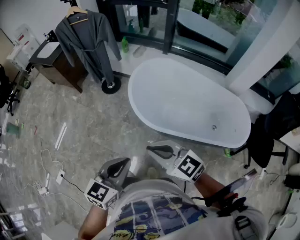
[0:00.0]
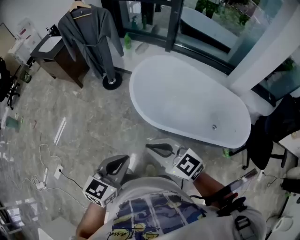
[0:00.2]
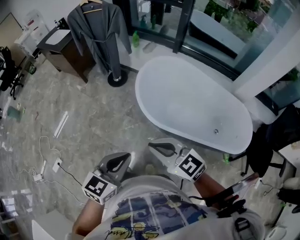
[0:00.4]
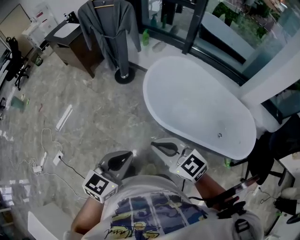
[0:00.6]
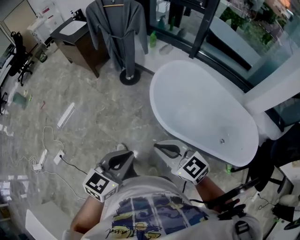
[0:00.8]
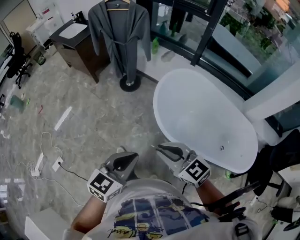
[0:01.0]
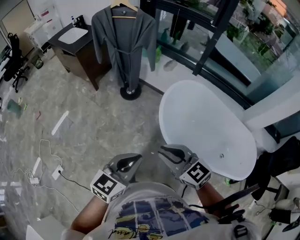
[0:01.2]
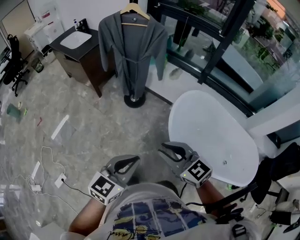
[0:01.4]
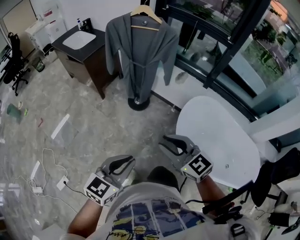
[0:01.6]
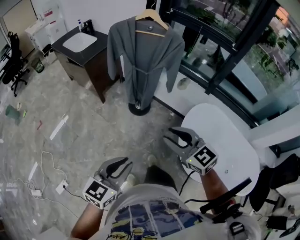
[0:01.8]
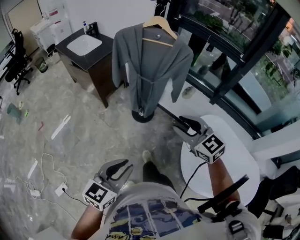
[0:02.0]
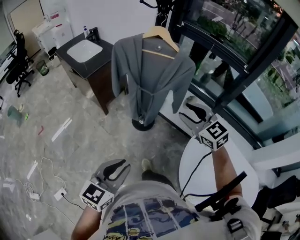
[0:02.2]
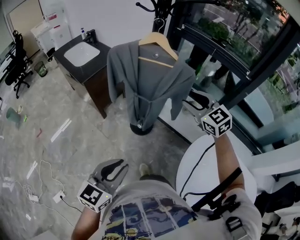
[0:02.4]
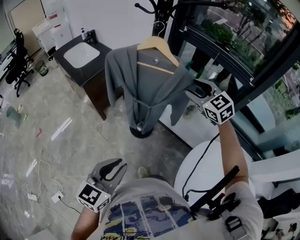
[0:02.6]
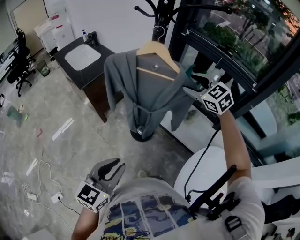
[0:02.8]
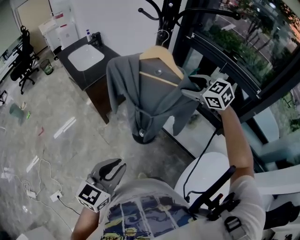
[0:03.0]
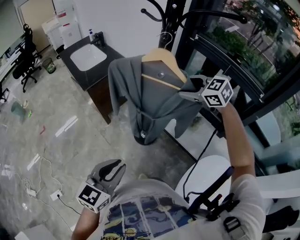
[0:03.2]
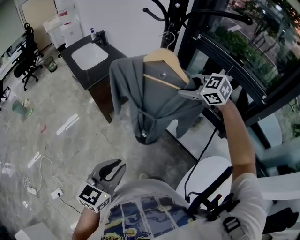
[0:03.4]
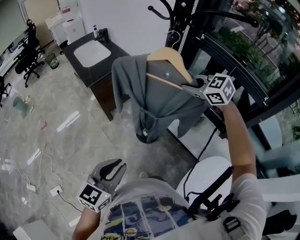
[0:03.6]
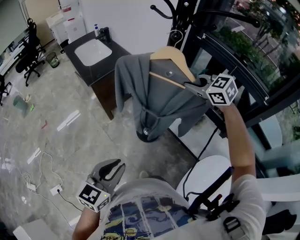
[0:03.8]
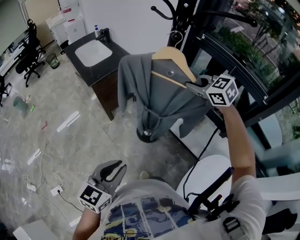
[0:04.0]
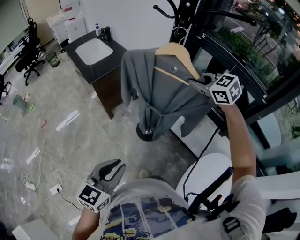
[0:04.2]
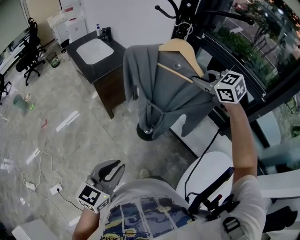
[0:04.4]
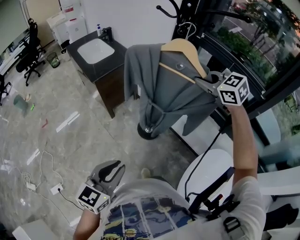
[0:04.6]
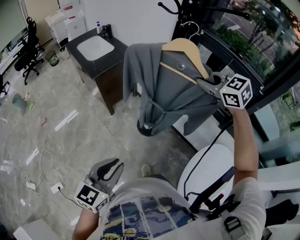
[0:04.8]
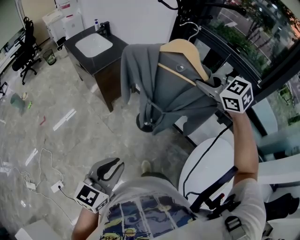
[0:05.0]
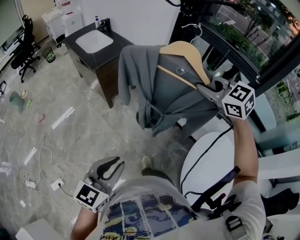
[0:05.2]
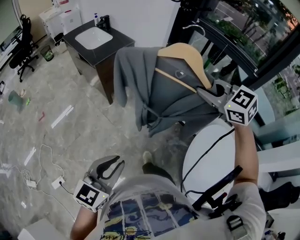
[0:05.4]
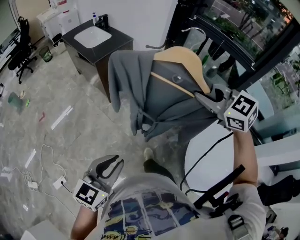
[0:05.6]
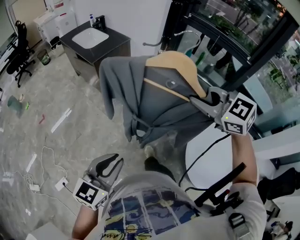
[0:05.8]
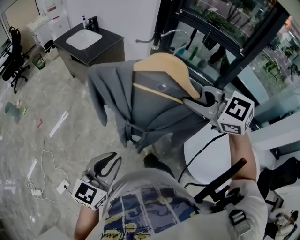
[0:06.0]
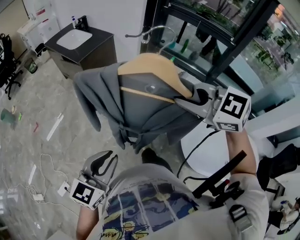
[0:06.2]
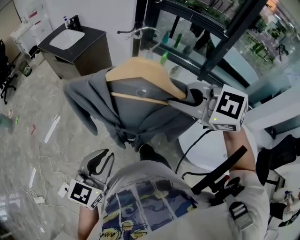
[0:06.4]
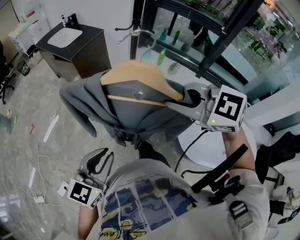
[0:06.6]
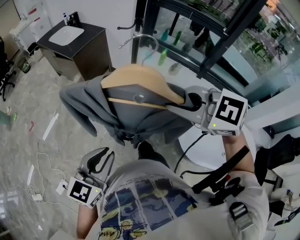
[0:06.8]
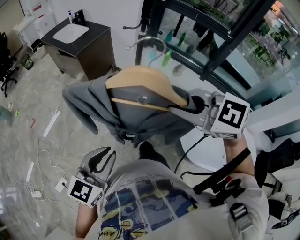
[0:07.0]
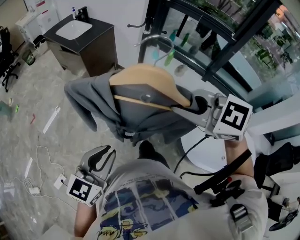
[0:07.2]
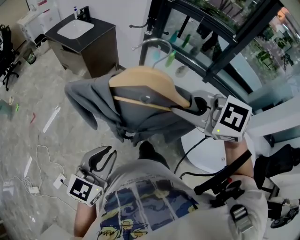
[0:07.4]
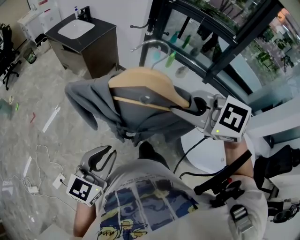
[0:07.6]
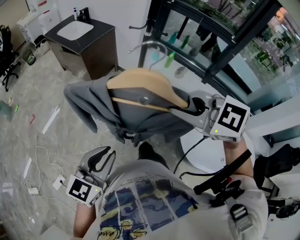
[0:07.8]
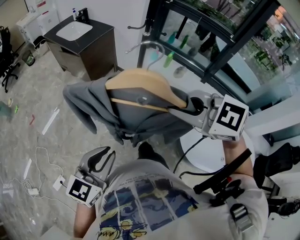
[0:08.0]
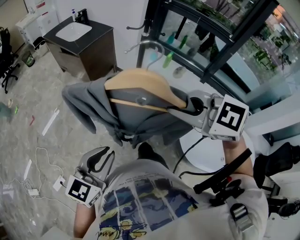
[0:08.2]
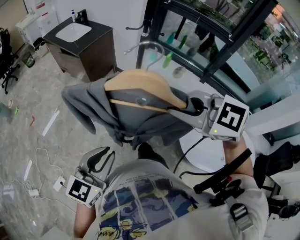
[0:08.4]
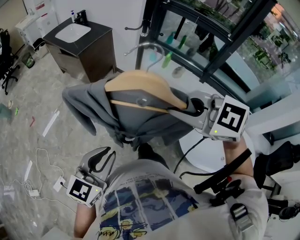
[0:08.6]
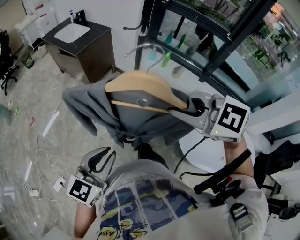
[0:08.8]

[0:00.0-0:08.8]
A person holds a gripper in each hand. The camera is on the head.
0:00.0 to 0:01.4: The two grippers go some 30 cm forward and to the left.
0:01.4 to 0:03.0: The right gripper shifts some 70 cm forward, turns by about 20 degrees, and opens; the left gripper heads forward, covering about 40 cm.
0:03.0 to 0:04.4: The left gripper changes place by roughly 5 cm; the right gripper ends up approximately 5 cm from where it was, and closes its fingers.
0:04.4 to 0:05.8: The left gripper travels backward and to the left by about 20 cm, while the right gripper travels backward by some 35 cm.
0:05.8 to 0:07.4: The right gripper moves backward and to the left, some 15 cm, while the left gripper goes approximately 5 cm backward.
0:07.4 to 0:08.8: The grippers make only small movements.

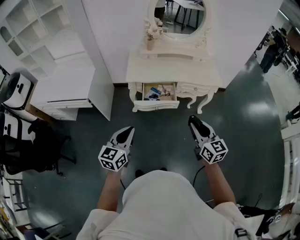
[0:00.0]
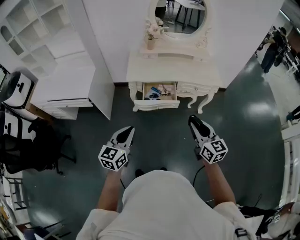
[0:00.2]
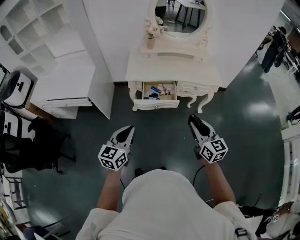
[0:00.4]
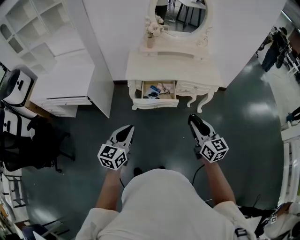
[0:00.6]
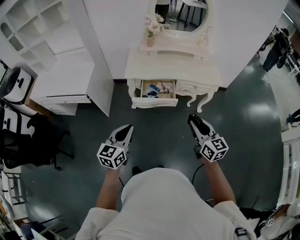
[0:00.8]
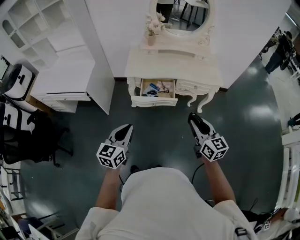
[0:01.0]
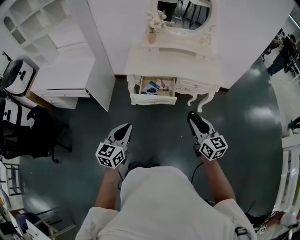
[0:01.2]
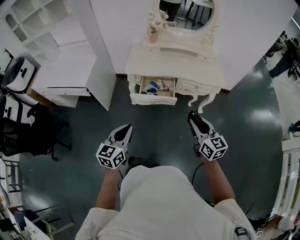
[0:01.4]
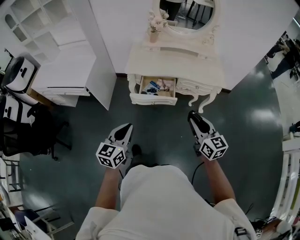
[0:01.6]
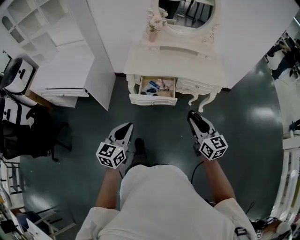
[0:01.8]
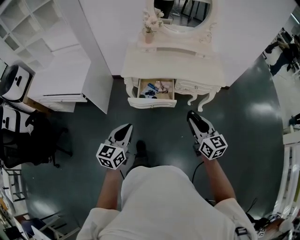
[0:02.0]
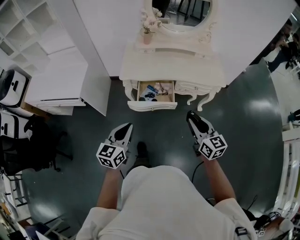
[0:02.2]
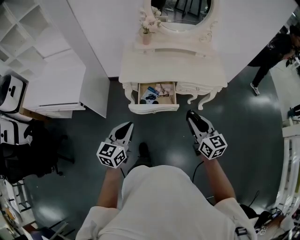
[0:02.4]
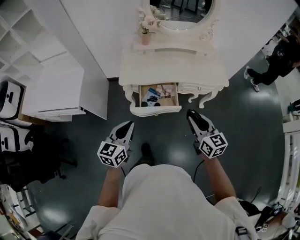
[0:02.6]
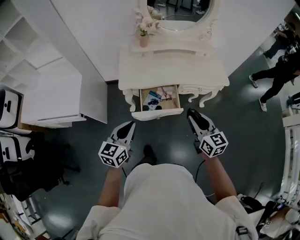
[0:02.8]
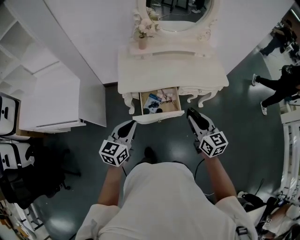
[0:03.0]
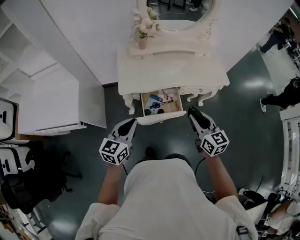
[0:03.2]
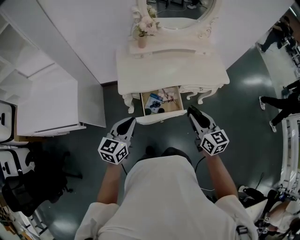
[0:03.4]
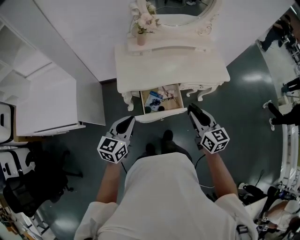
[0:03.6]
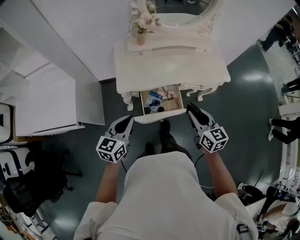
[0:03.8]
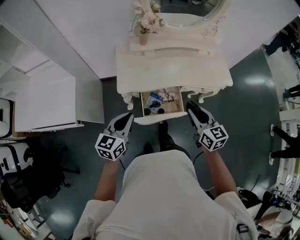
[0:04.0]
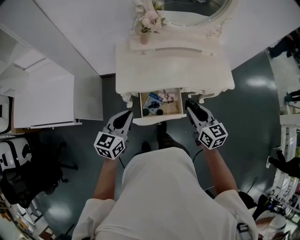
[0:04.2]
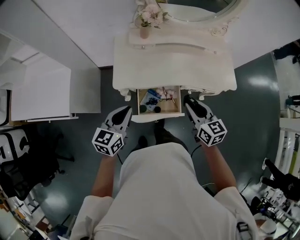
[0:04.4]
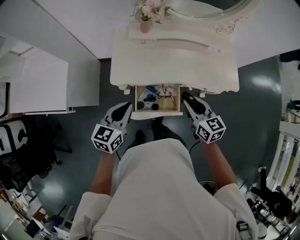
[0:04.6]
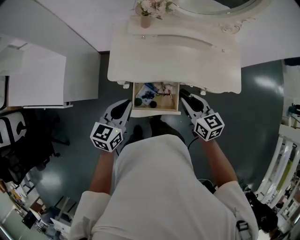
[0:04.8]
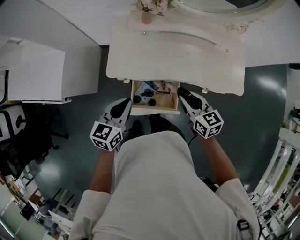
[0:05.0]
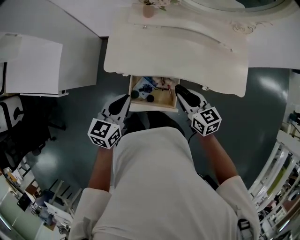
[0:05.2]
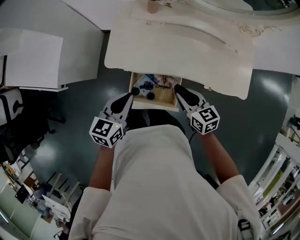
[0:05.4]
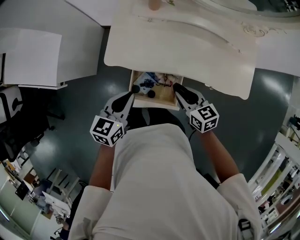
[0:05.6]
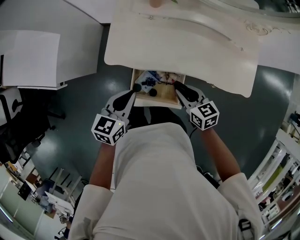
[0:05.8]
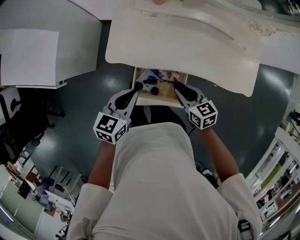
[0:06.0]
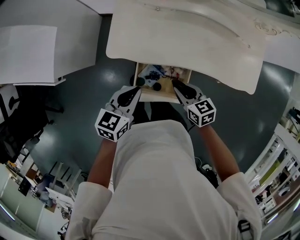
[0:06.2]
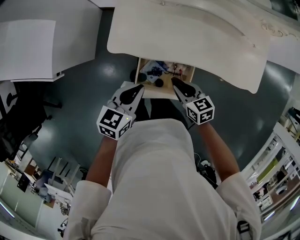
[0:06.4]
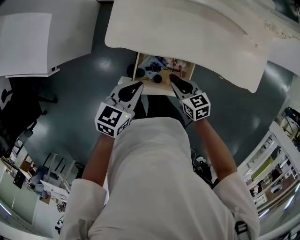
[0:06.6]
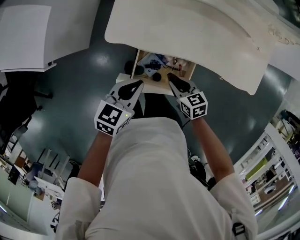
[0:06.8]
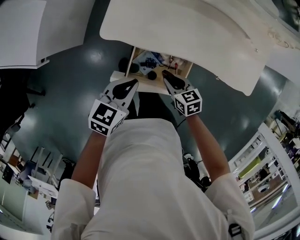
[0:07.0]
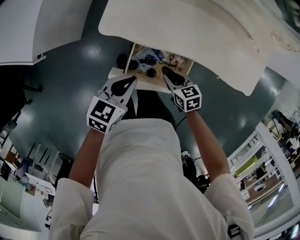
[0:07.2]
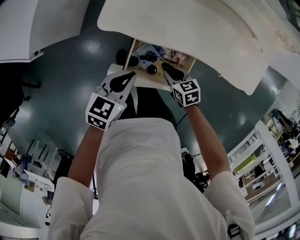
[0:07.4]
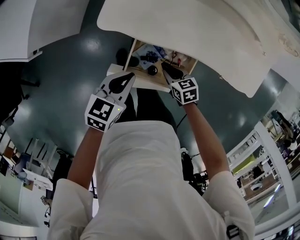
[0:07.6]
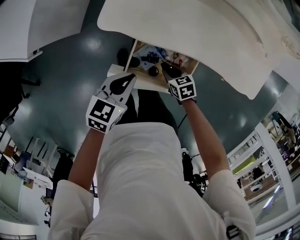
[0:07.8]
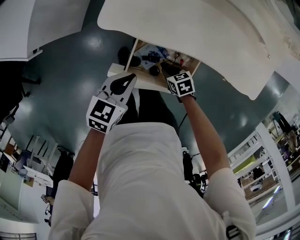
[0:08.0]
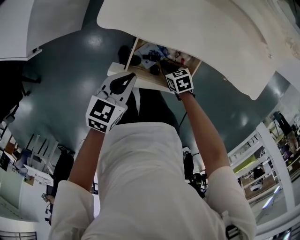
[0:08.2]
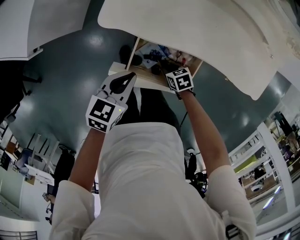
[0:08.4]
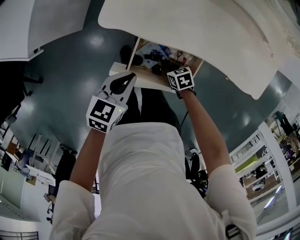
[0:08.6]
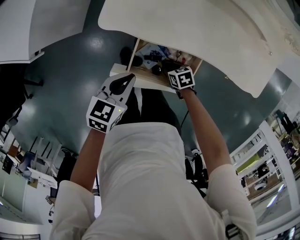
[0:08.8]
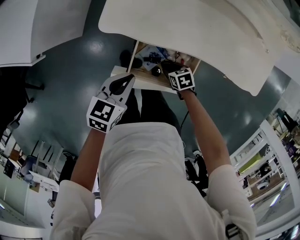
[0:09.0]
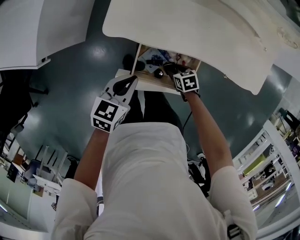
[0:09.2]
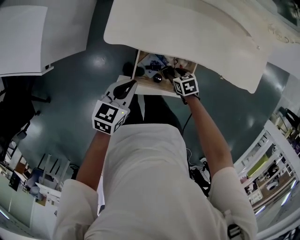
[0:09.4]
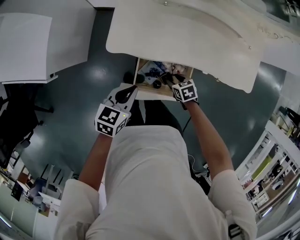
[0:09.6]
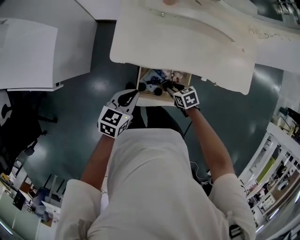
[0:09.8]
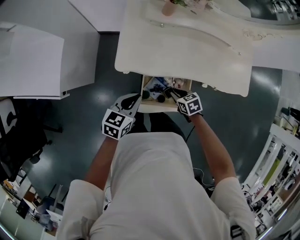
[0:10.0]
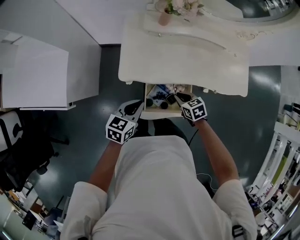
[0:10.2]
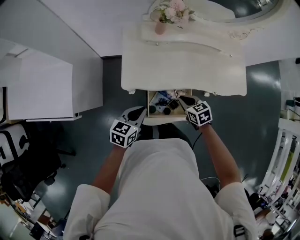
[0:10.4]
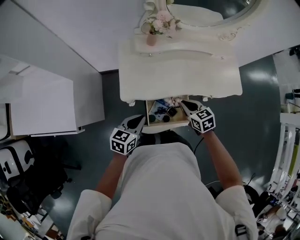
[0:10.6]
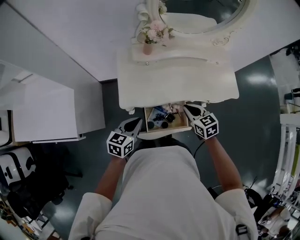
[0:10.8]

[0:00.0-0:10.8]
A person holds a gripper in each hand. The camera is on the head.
0:00.0 to 0:01.6: Both grippers move to the right, some 5 cm.
0:01.6 to 0:03.0: The right gripper heads forward and to the left, covering about 20 cm. The left gripper goes about 25 cm forward.
0:03.0 to 0:04.6: The left gripper travels forward by approximately 15 cm. Meanwhile the right gripper heads forward and downward, covering roughly 20 cm.
0:04.6 to 0:06.2: The right gripper heads downward, covering approximately 15 cm, and changes its angle by roughly 30 degrees, while the left gripper goes roughly 10 cm downward.
0:06.2 to 0:07.8: The right gripper shifts approximately 20 cm downward, and swivels roughly 20 degrees, while the left gripper shifts roughly 10 cm downward.
0:07.8 to 0:09.2: The right gripper opens its fingers.
0:09.2 to 0:10.8: The left gripper is displaced upward by about 15 cm. Meanwhile the right gripper travels upward by some 35 cm, rotates some 40 degrees, and closes.

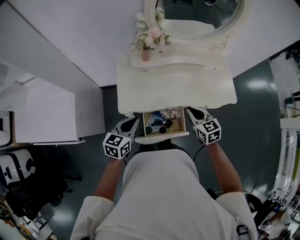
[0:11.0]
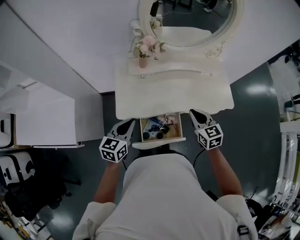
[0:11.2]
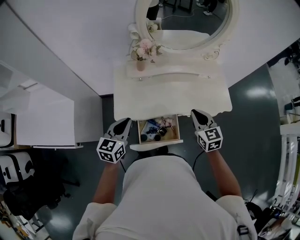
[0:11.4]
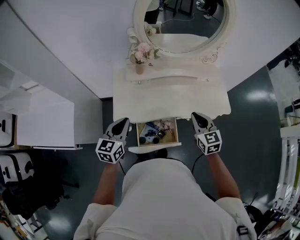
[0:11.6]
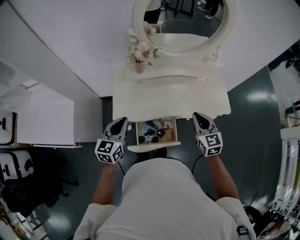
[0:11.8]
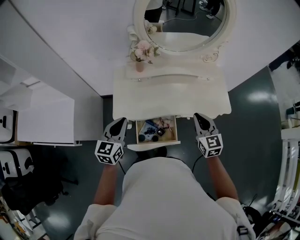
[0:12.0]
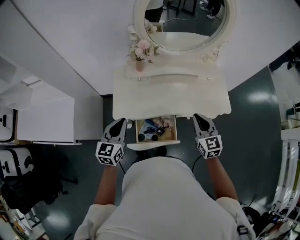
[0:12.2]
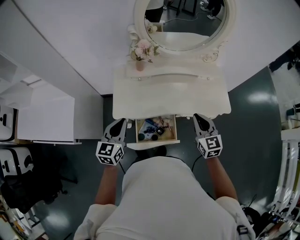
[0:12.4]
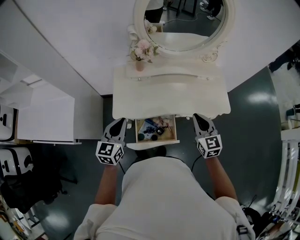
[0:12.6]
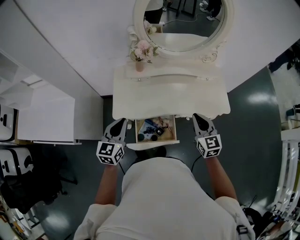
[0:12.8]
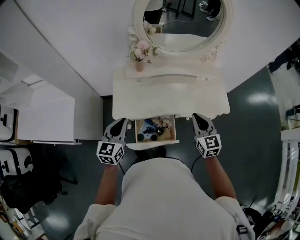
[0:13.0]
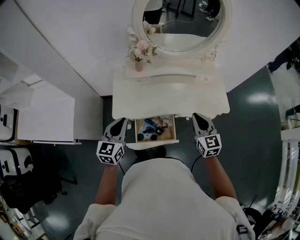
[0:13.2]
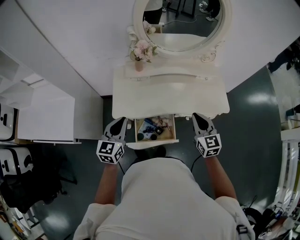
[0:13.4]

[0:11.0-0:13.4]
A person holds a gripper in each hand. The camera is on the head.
0:11.0 to 0:12.2: The right gripper goes roughly 10 cm to the right and upward. Meanwhile the left gripper moves upward, about 5 cm, and turns by about 20 degrees.
0:12.2 to 0:13.4: The two grippers keep their place.

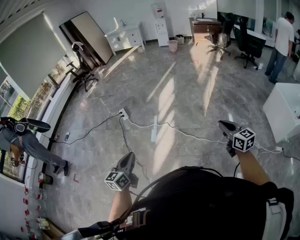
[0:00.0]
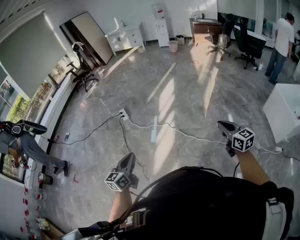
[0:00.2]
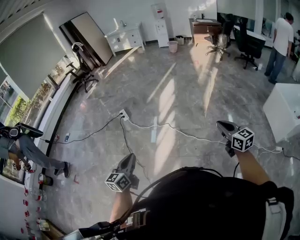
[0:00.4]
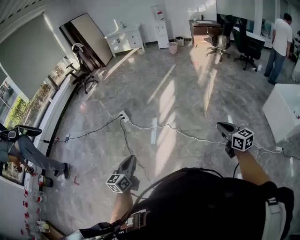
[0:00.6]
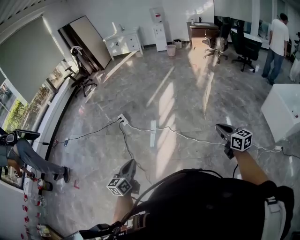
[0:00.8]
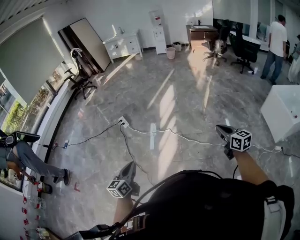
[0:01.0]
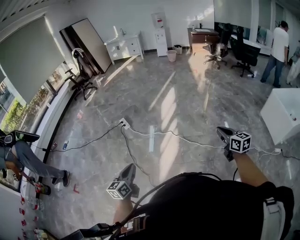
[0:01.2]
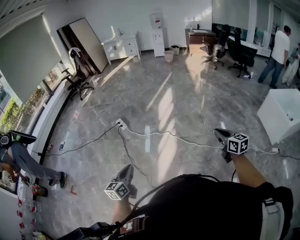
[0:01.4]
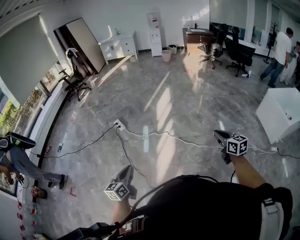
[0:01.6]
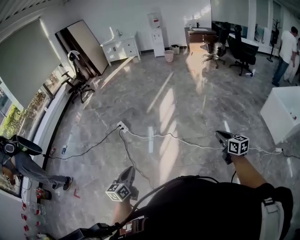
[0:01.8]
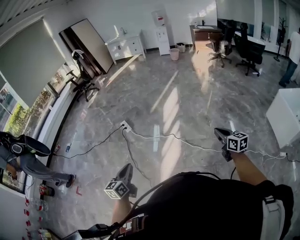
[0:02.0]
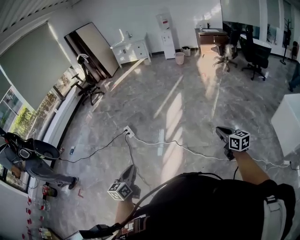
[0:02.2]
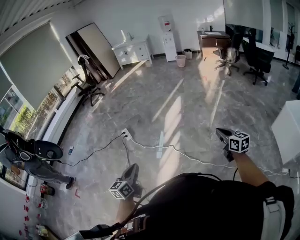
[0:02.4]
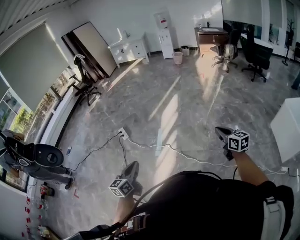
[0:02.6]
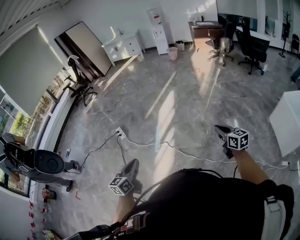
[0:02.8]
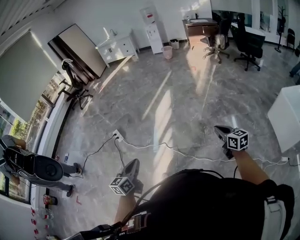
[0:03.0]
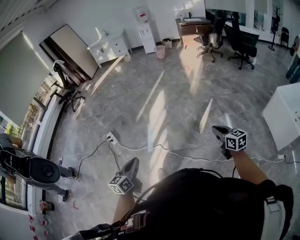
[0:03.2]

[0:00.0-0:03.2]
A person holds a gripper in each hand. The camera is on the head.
0:00.0 to 0:01.6: The two grippers go approximately 15 cm to the left.
0:01.6 to 0:03.2: The right gripper shifts approximately 40 cm forward and to the right; the left gripper is displaced to the right and forward by about 40 cm.
